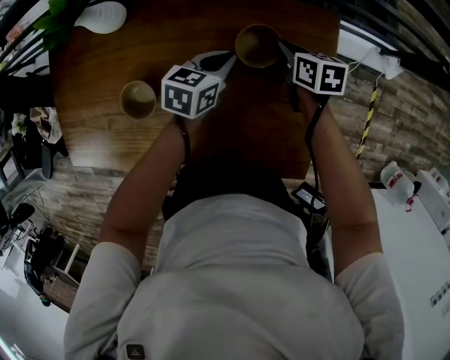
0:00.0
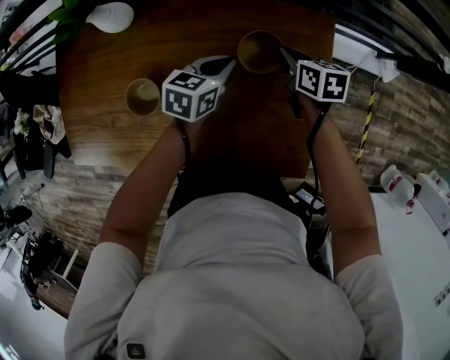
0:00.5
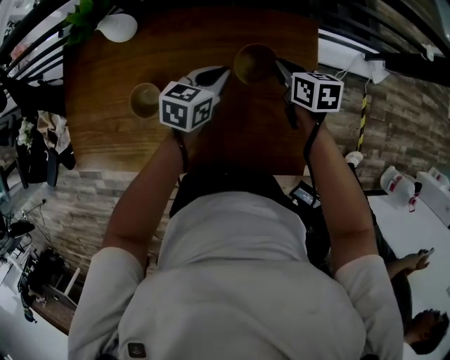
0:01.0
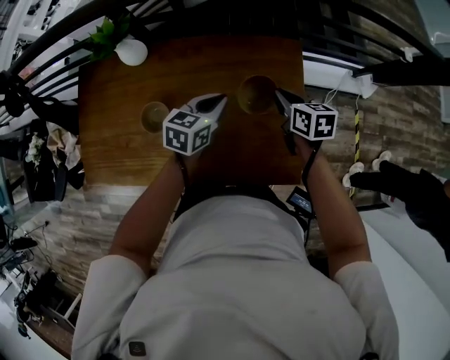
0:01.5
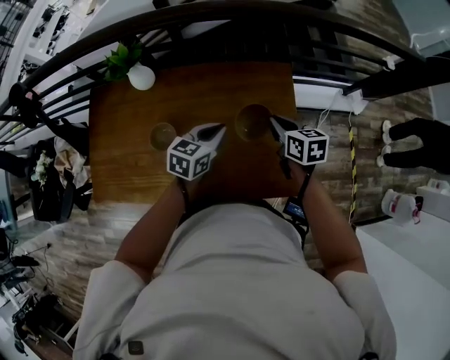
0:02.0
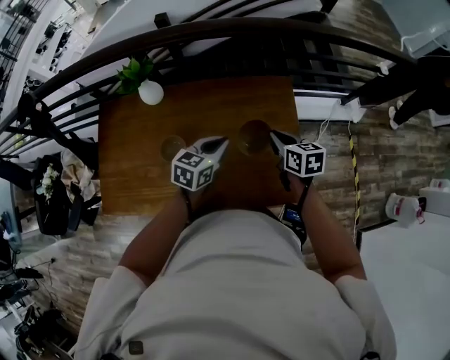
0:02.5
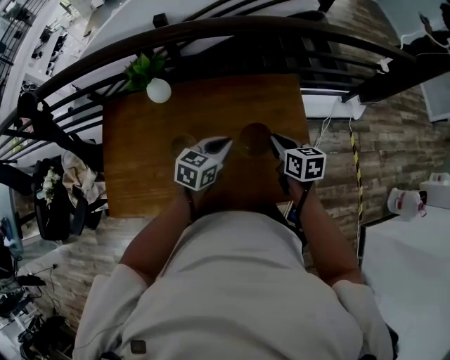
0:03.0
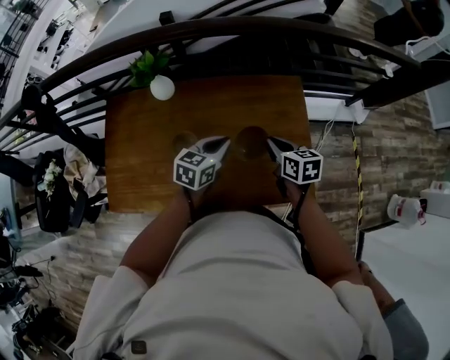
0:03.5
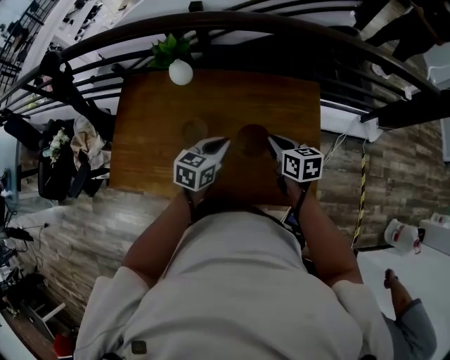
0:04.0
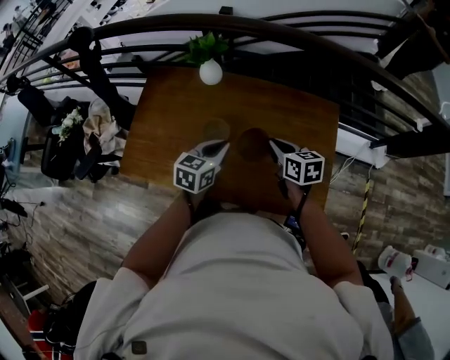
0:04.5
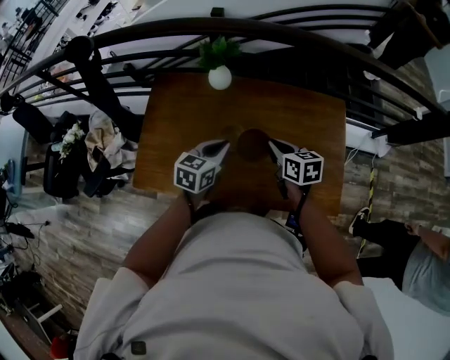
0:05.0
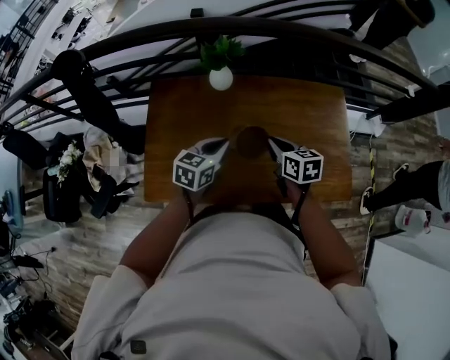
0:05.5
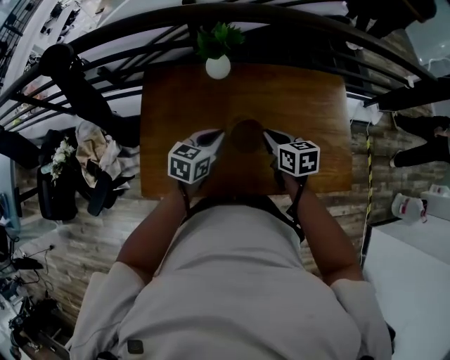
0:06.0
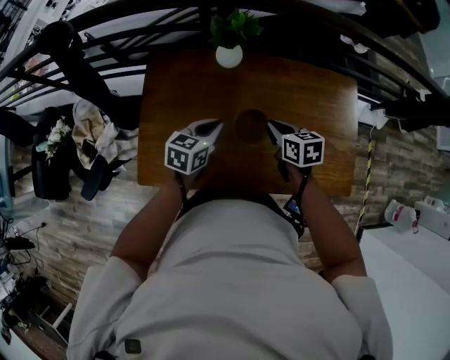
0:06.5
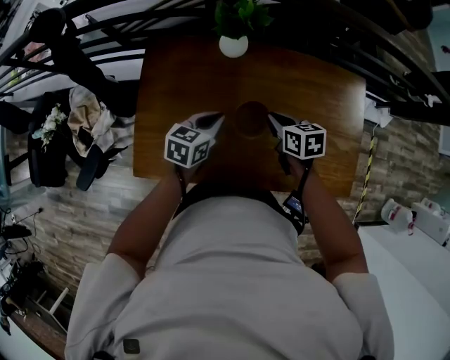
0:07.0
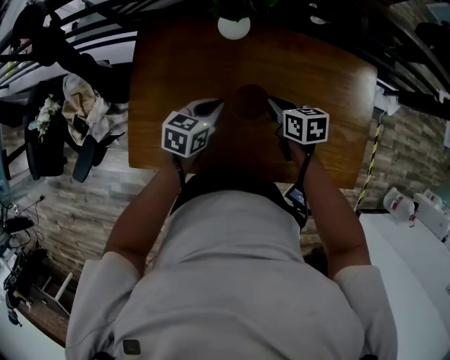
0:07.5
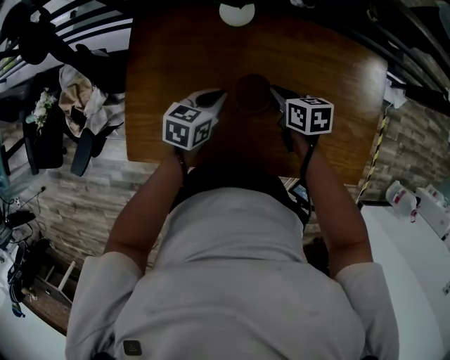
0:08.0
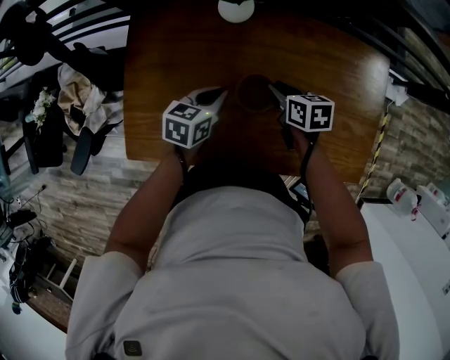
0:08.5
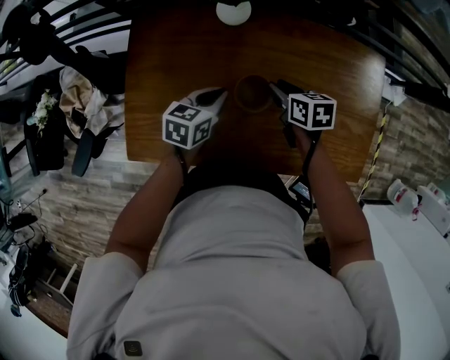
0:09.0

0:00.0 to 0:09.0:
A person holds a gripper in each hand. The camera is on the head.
0:00.0 to 0:02.0: Both grippers travel together upward and backward, some 25 cm.
0:02.0 to 0:04.5: The left gripper moves to the left and backward, roughly 20 cm. Meanwhile the right gripper goes about 20 cm to the left.
0:04.5 to 0:07.0: The grippers both shift to the left and downward by roughly 25 cm.
0:07.0 to 0:09.0: The grippers both shift downward by some 5 cm. The right gripper opens its fingers.

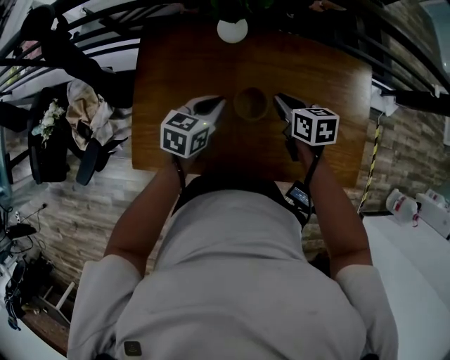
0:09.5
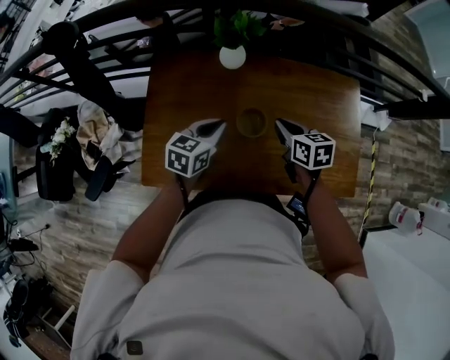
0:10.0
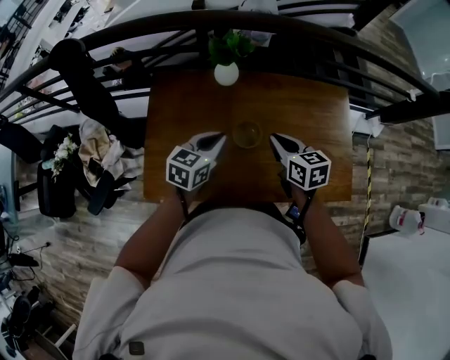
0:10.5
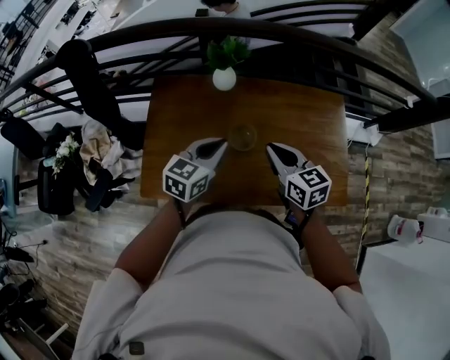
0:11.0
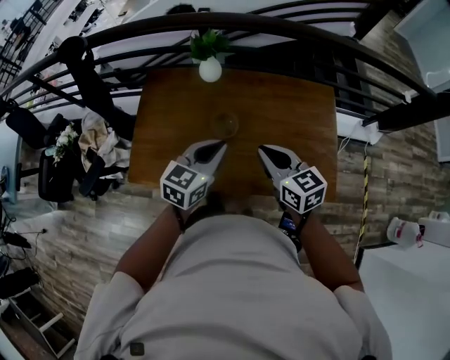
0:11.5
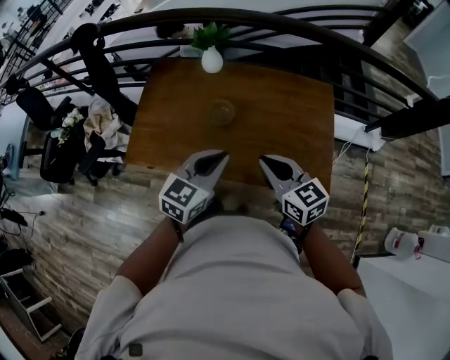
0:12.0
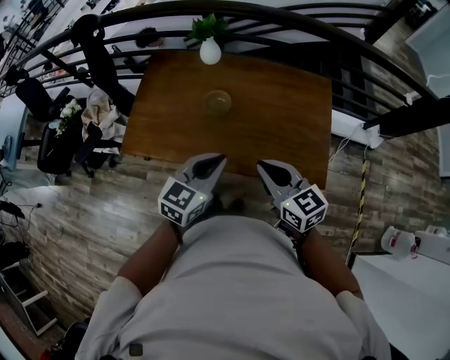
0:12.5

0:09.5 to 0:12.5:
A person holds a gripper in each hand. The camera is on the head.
0:09.5 to 0:11.0: The two grippers go about 20 cm upward and backward. The right gripper rotates some 20 degrees.
0:11.0 to 0:12.5: Both grippers move backward and to the right, some 25 cm.

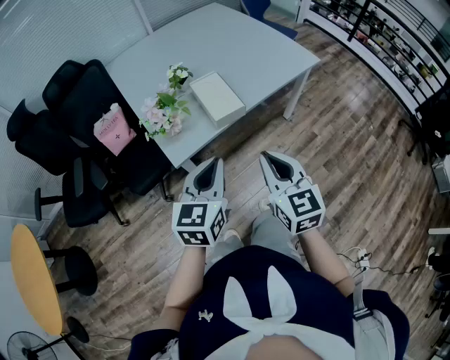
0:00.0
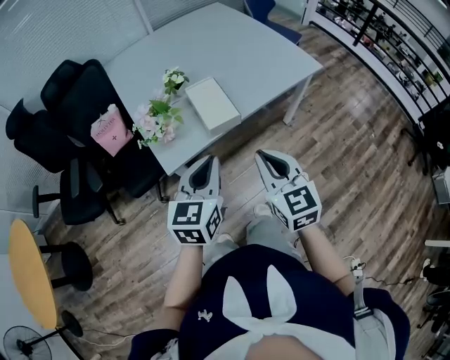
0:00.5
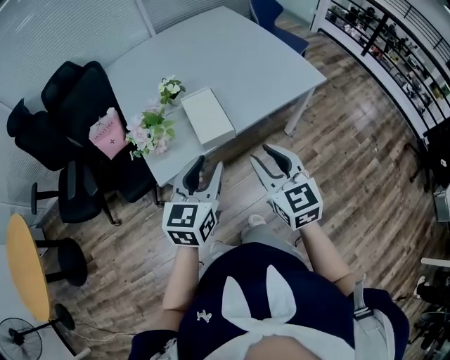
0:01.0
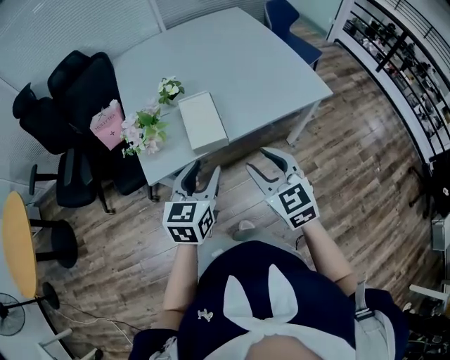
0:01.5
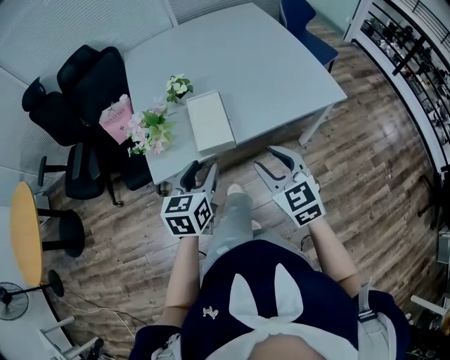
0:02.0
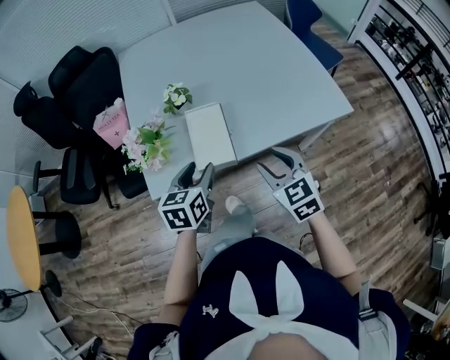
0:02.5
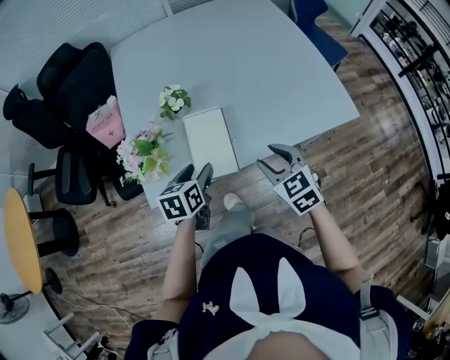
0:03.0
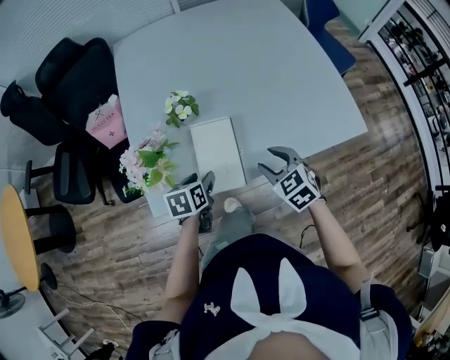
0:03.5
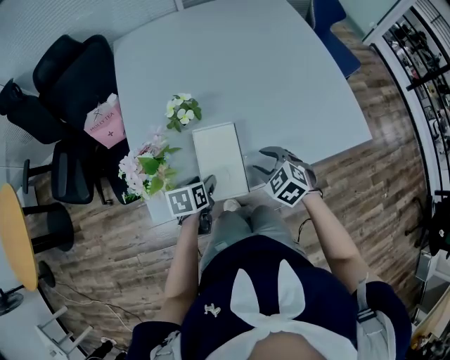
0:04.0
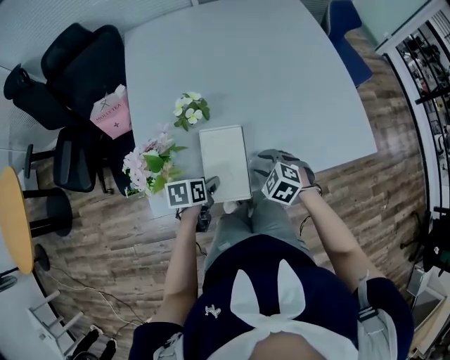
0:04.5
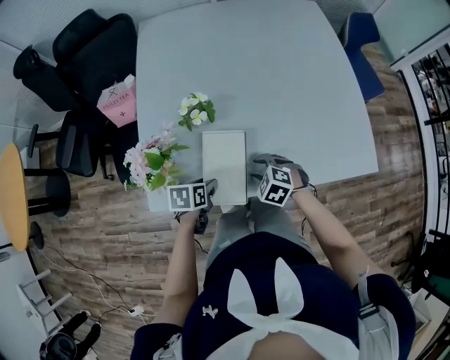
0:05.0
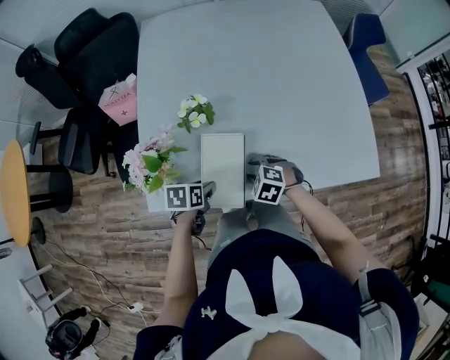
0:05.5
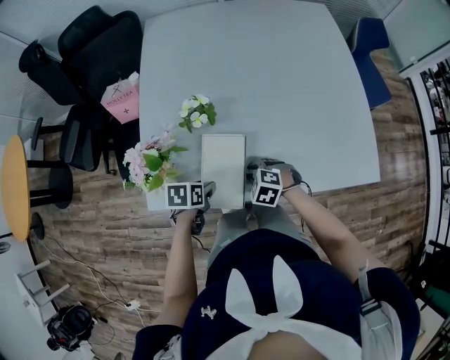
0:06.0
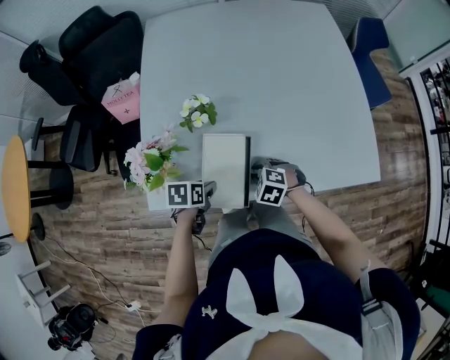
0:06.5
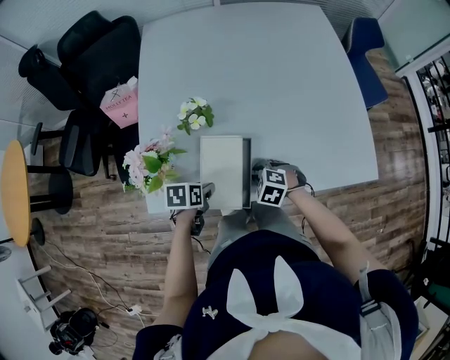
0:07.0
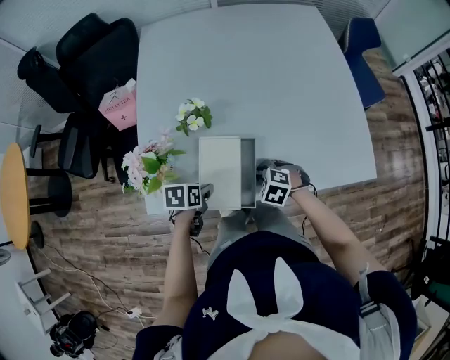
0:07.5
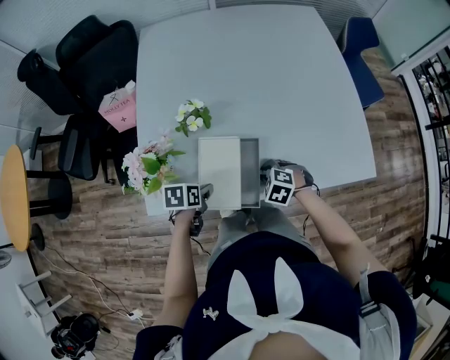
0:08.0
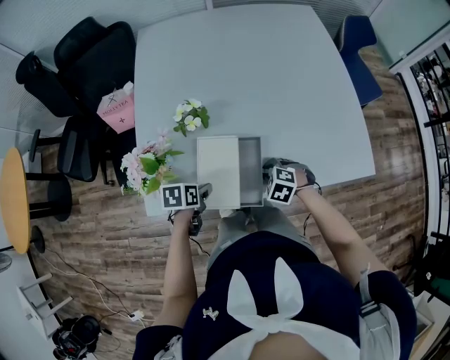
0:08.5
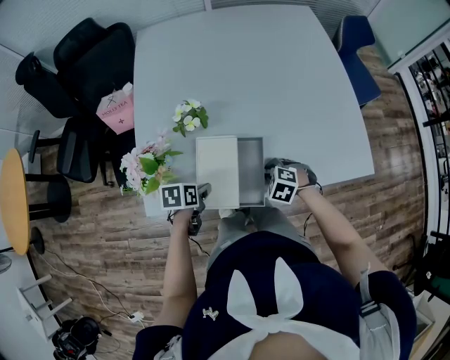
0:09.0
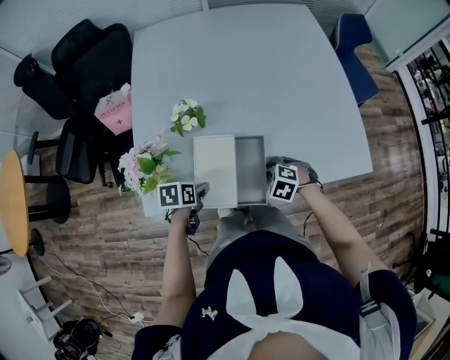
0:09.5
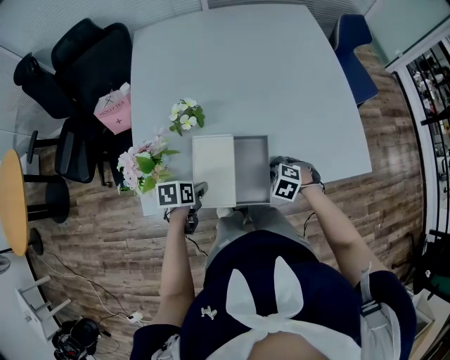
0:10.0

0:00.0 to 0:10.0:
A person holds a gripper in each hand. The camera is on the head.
0:00.0 to 0:02.0: The right gripper is displaced forward and to the right by approximately 20 cm, turns by roughly 30 degrees, and opens its fingers, while the left gripper shifts roughly 20 cm forward, to the right and downward, swivels approximately 20 degrees, and opens its fingers.
0:02.0 to 0:04.0: The left gripper travels downward and forward by roughly 25 cm, and swivels approximately 40 degrees. Meanwhile the right gripper moves forward and downward, some 30 cm, and swivels roughly 40 degrees.
0:04.0 to 0:06.0: The right gripper heads downward, covering roughly 10 cm, turns by roughly 30 degrees, and closes up.
0:06.0 to 0:08.0: The right gripper is displaced to the right by roughly 5 cm.
0:08.0 to 0:10.0: The right gripper changes place by some 5 cm.

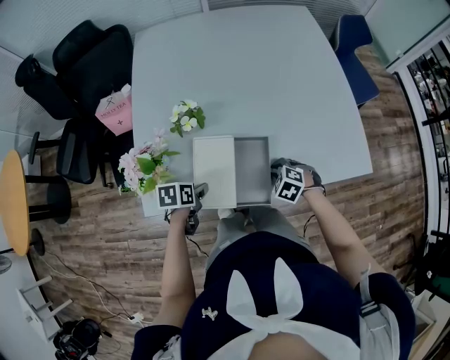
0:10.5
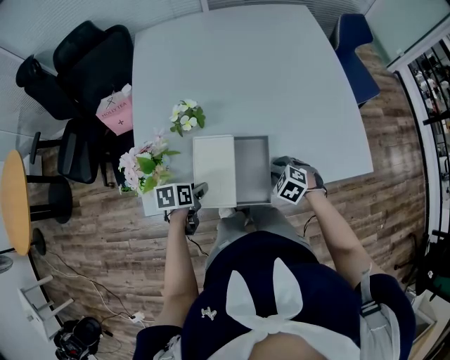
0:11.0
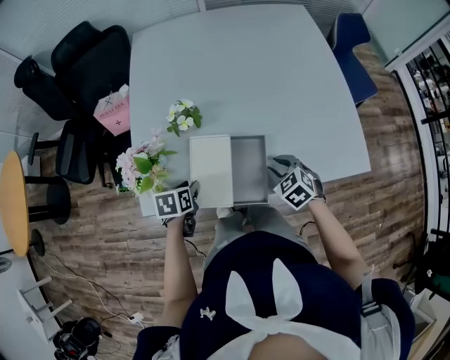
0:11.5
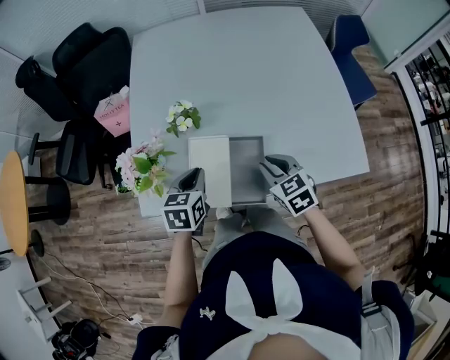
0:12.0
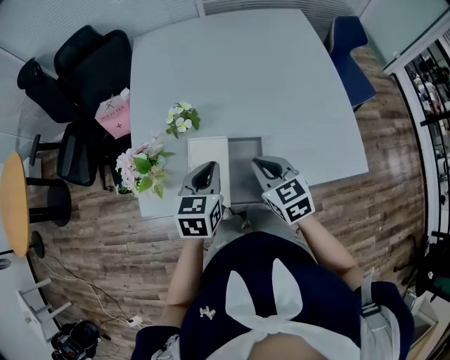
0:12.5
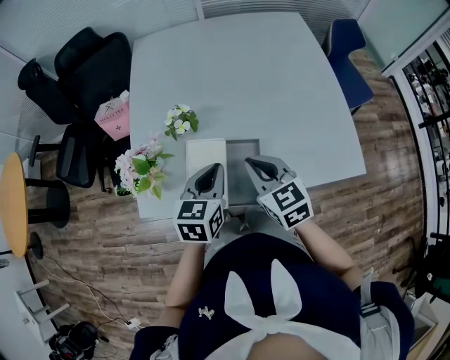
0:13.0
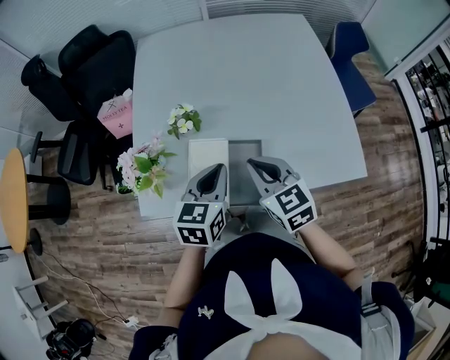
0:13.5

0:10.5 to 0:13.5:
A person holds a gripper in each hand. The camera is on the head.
0:10.5 to 0:12.0: The grippers both shift upward by about 15 cm. The left gripper swivels approximately 30 degrees, and closes up, while the right gripper changes its angle by roughly 40 degrees.
0:12.0 to 0:13.5: The left gripper is displaced upward and to the right by approximately 10 cm. The right gripper heads upward, covering some 10 cm.

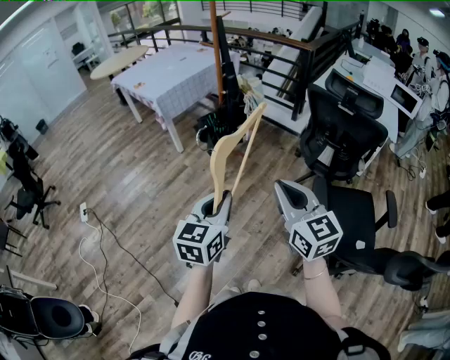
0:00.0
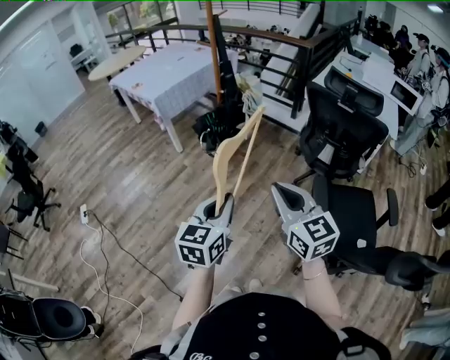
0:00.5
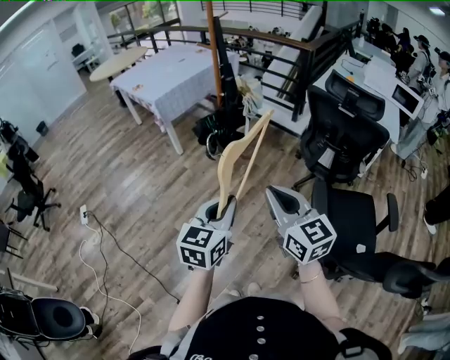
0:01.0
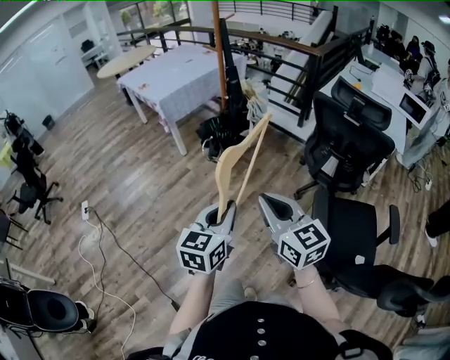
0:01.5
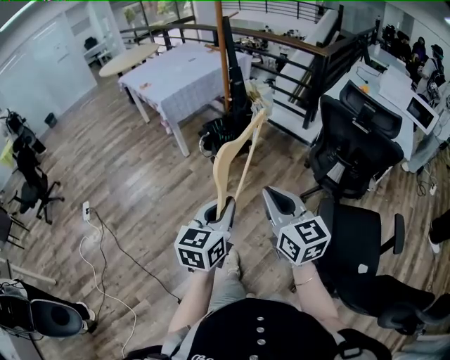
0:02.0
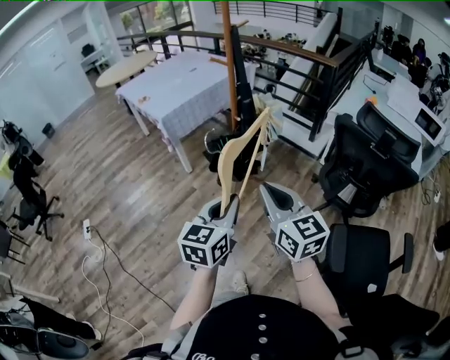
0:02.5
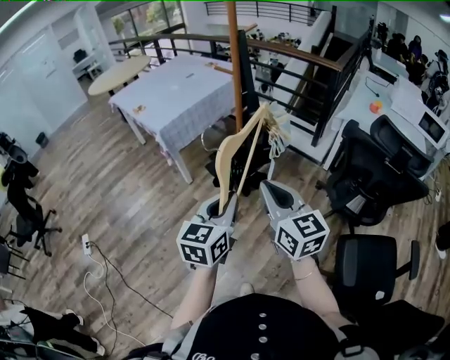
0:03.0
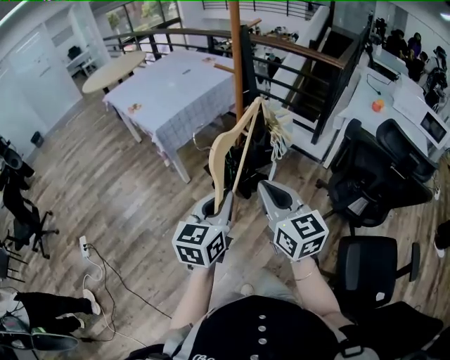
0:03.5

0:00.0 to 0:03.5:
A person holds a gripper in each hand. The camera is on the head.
0:00.0 to 0:02.0: Both grippers move forward, about 10 cm.
0:02.0 to 0:03.5: Both grippers travel together forward, about 30 cm.
